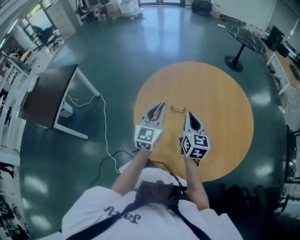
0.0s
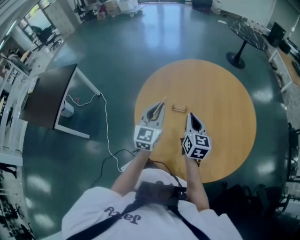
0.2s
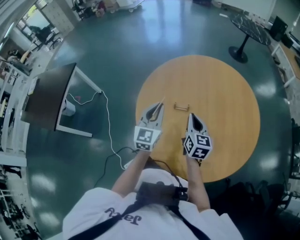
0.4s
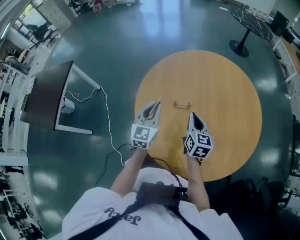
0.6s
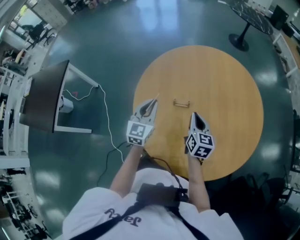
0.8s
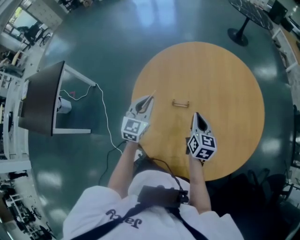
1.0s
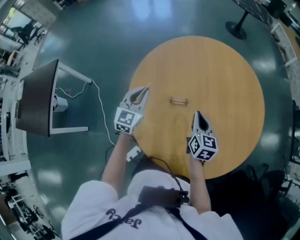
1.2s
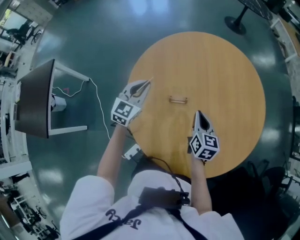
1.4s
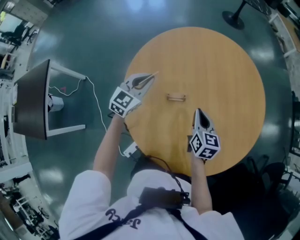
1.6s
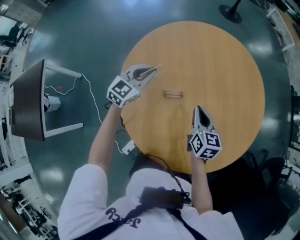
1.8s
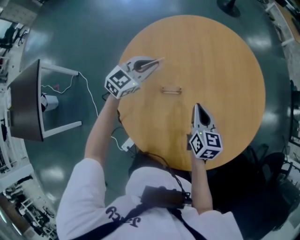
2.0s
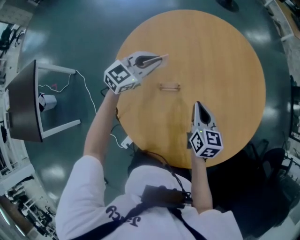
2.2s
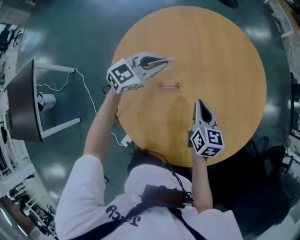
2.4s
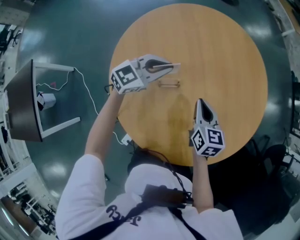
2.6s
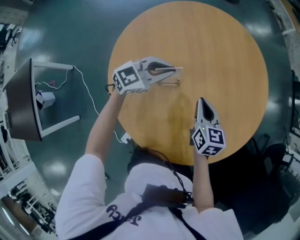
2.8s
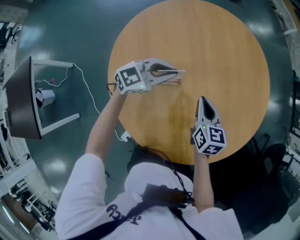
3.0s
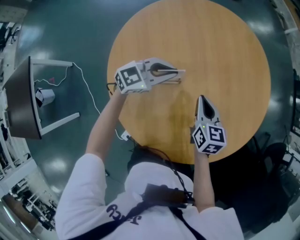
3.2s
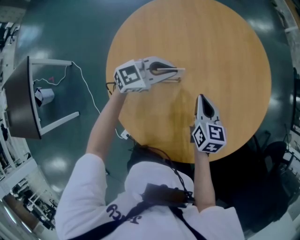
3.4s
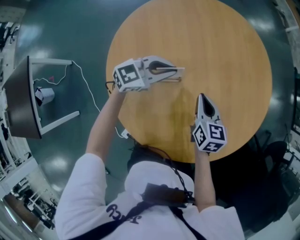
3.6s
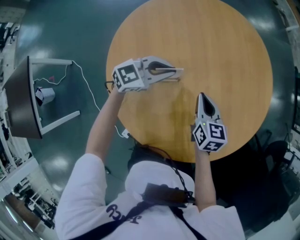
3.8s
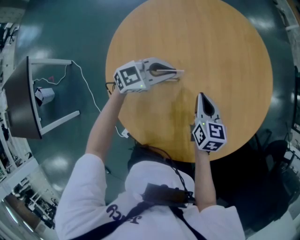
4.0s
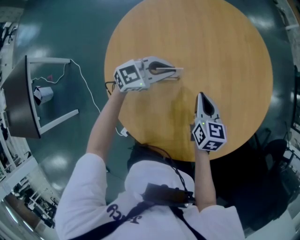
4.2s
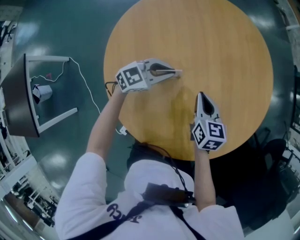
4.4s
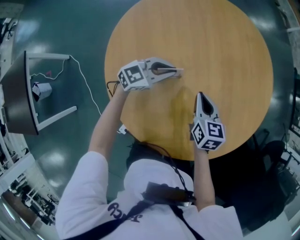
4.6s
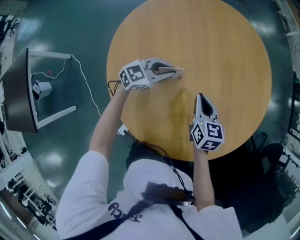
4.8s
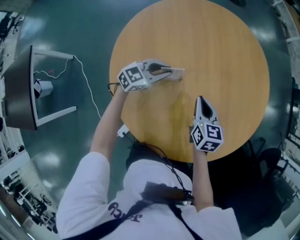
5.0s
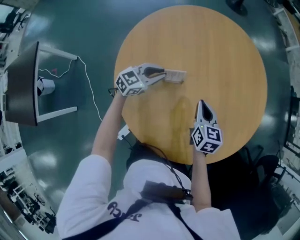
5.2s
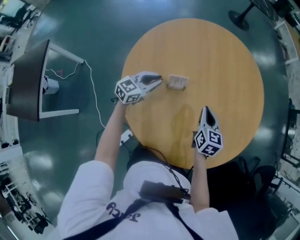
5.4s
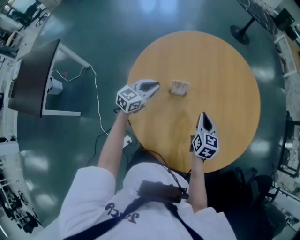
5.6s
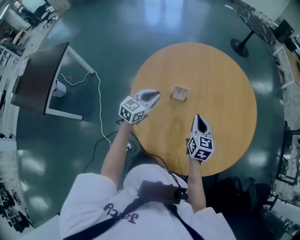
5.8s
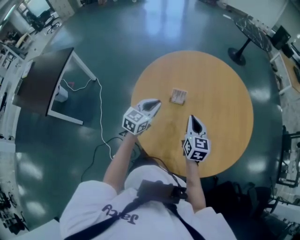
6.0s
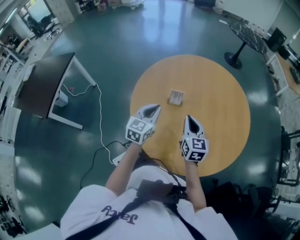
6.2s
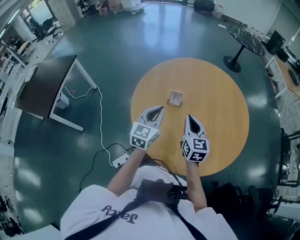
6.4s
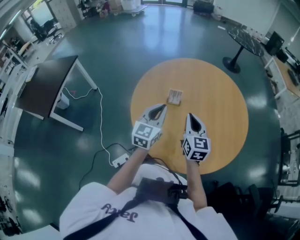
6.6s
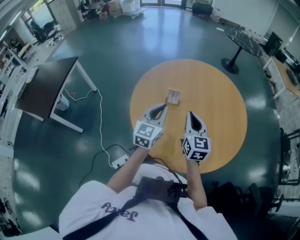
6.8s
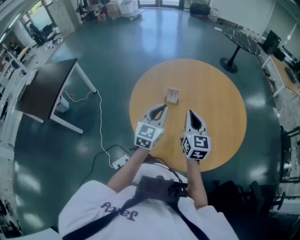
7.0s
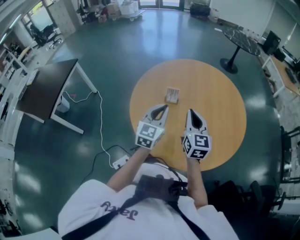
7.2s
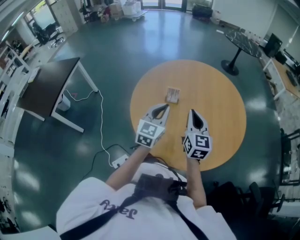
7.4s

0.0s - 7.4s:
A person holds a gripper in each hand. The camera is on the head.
0.0s - 1.4s: The left gripper moves forward and downward, roughly 20 cm, and rotates approximately 30 degrees. The right gripper moves downward and forward, about 15 cm.
1.4s - 3.0s: The left gripper ends up approximately 15 cm from where it was, and changes its angle by about 50 degrees.
3.0s - 4.4s: The left gripper shifts some 5 cm downward.
4.4s - 6.0s: The right gripper heads upward, covering roughly 10 cm, and swivels some 20 degrees; the left gripper moves about 20 cm, and swivels about 50 degrees.
6.0s - 7.4s: The left gripper moves upward, backward and to the right, approximately 15 cm; the right gripper goes approximately 10 cm upward and backward.

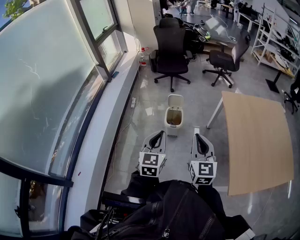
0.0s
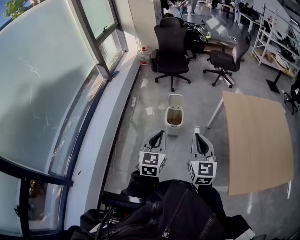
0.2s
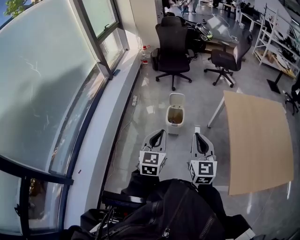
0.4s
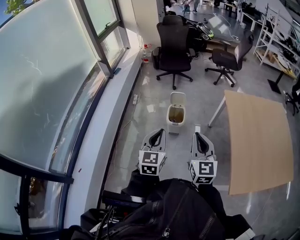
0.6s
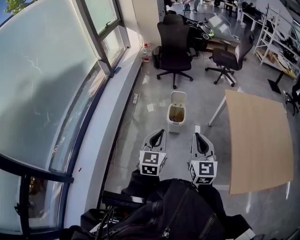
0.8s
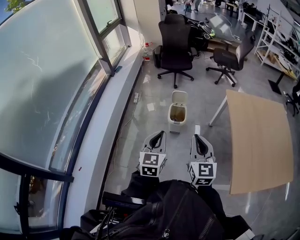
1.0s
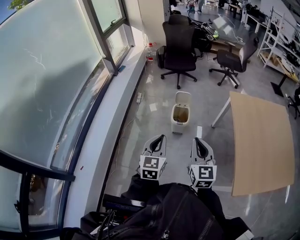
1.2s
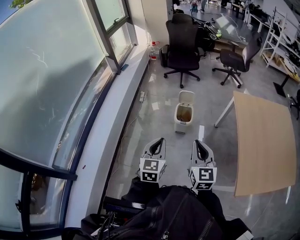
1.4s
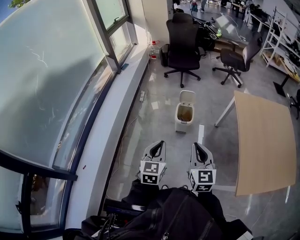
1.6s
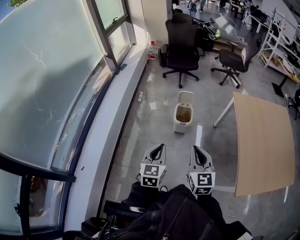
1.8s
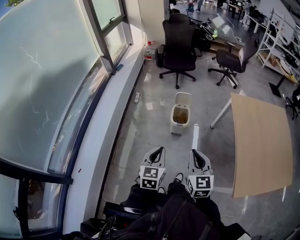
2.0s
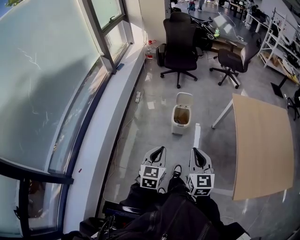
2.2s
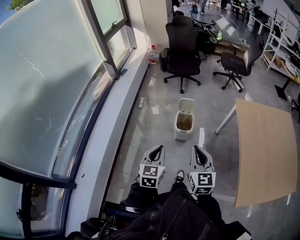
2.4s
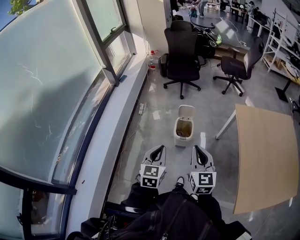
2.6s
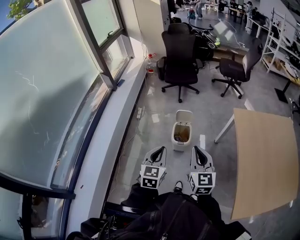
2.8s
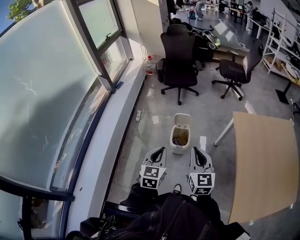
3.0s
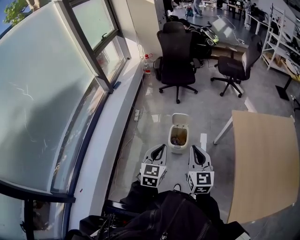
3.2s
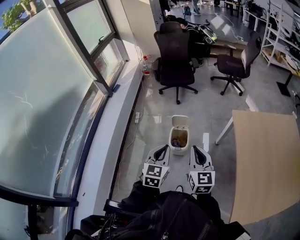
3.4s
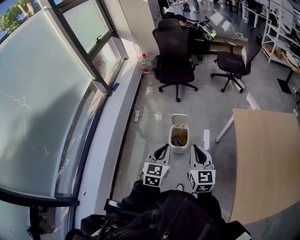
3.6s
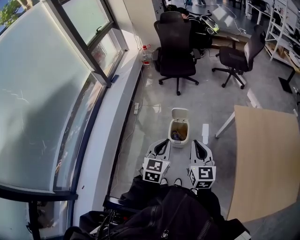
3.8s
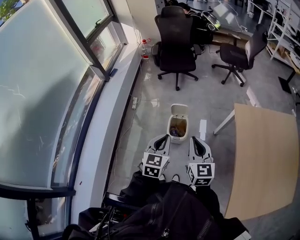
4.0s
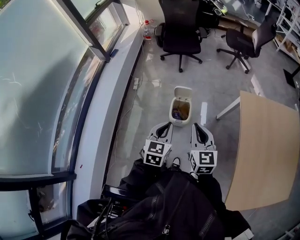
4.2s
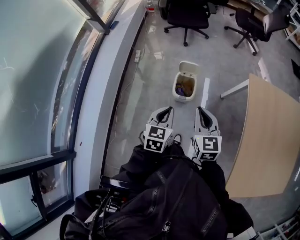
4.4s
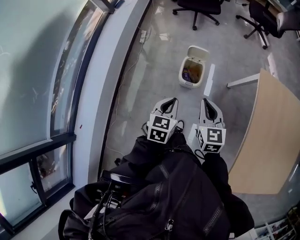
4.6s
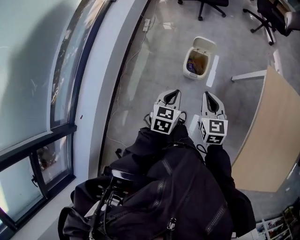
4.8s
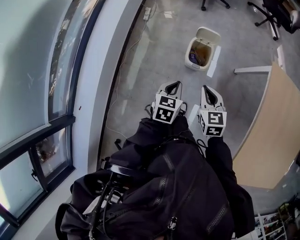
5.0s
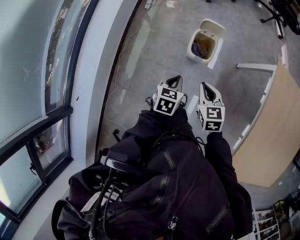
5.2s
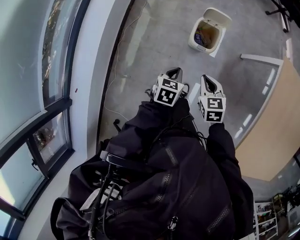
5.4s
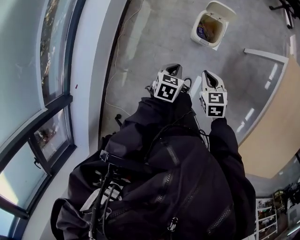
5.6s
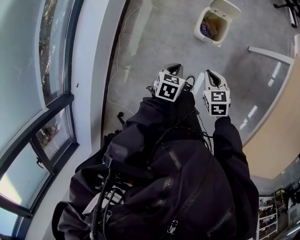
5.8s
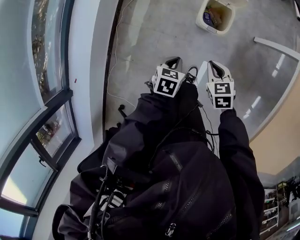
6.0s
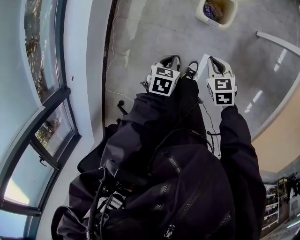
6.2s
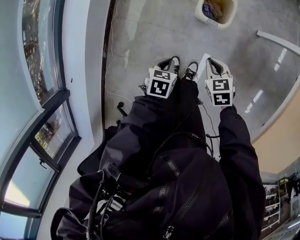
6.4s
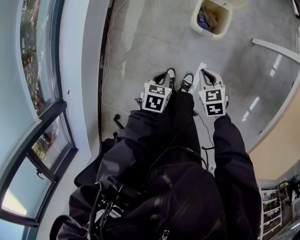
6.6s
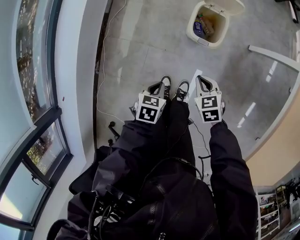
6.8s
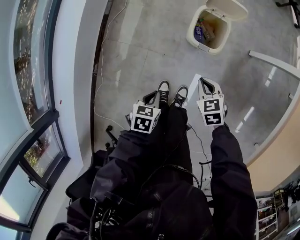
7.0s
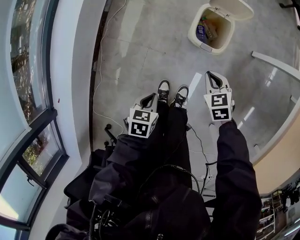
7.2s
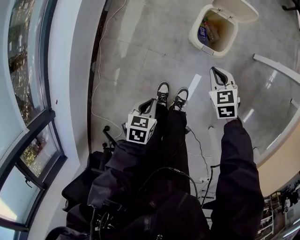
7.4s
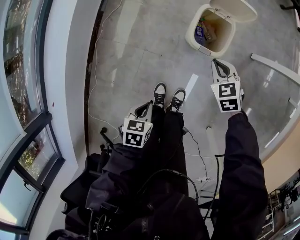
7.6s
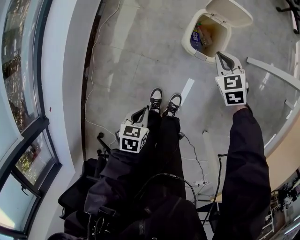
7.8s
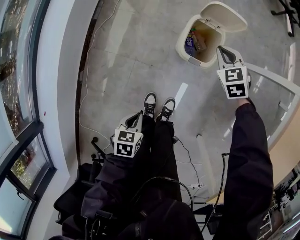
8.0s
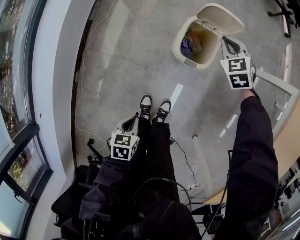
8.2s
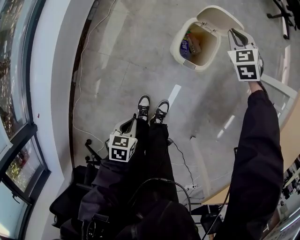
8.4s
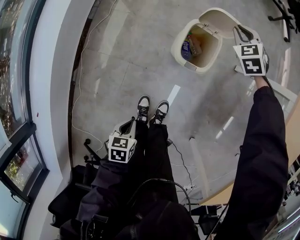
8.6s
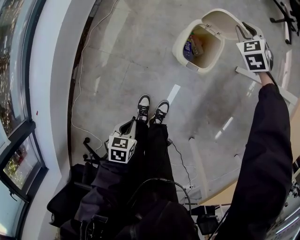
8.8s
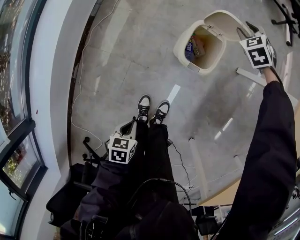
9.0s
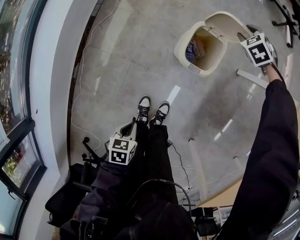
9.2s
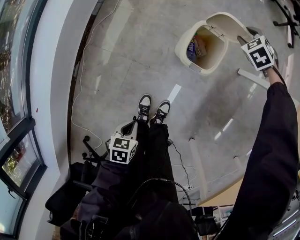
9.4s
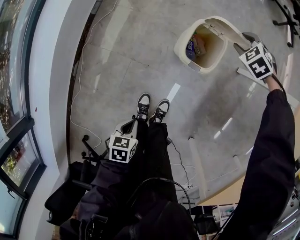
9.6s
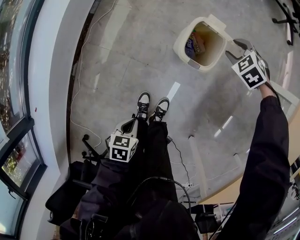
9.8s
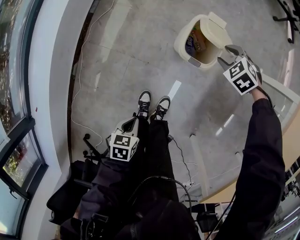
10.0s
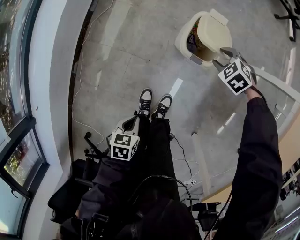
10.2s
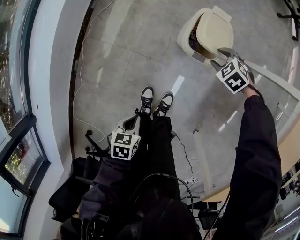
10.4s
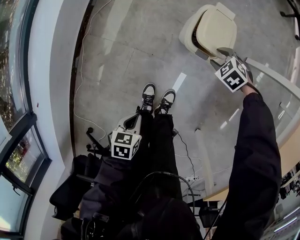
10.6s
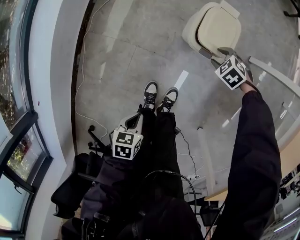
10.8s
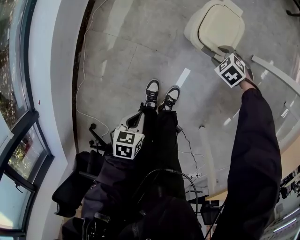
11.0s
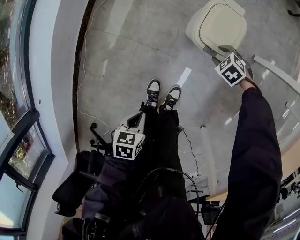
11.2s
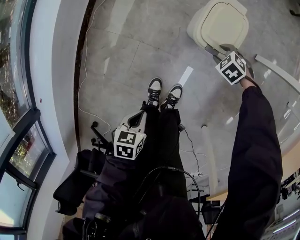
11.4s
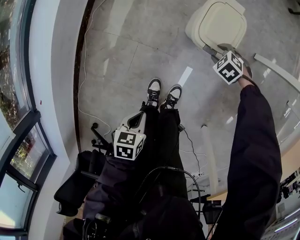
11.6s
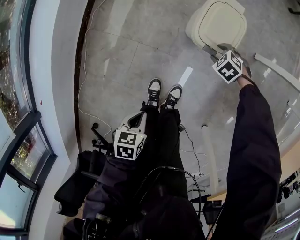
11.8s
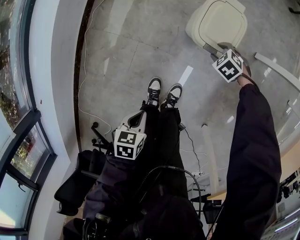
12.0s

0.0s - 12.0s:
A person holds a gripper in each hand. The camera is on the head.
0.0s - 1.6s: The right gripper goes about 10 cm to the left. The left gripper travels to the left and downward by about 10 cm.
1.6s - 3.0s: Both grippers travel together forward, roughly 20 cm.
3.0s - 4.4s: The left gripper goes some 15 cm downward and forward. Meanwhile the right gripper is displaced forward and downward by roughly 15 cm.
4.4s - 6.0s: Both grippers move downward, approximately 35 cm. The right gripper angles its fingers downward, by approximately 30 degrees, while the left gripper swivels roughly 30 degrees.
6.0s - 7.6s: The left gripper is displaced downward and backward by roughly 15 cm. The right gripper is displaced downward and forward by about 20 cm.
7.6s - 9.0s: The right gripper travels forward by roughly 25 cm, swivels about 30 degrees, and opens up.
9.0s - 10.4s: The right gripper changes place by about 25 cm, and swivels roughly 30 degrees.
10.4s - 12.0s: The right gripper moves downward, about 10 cm.

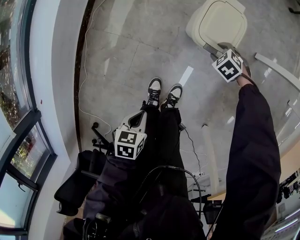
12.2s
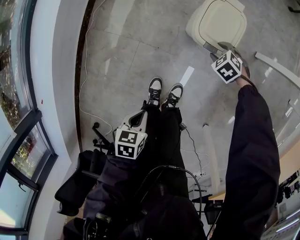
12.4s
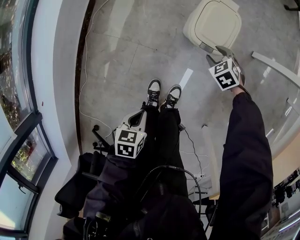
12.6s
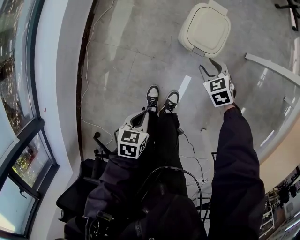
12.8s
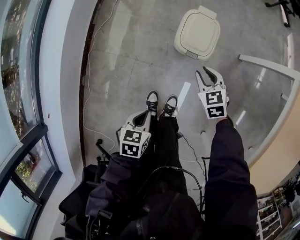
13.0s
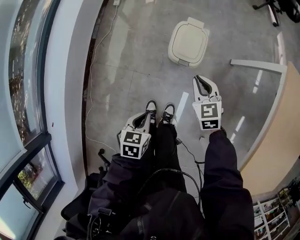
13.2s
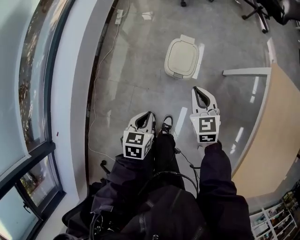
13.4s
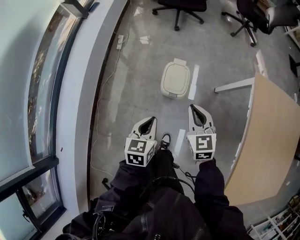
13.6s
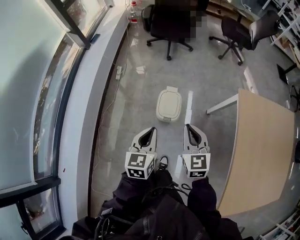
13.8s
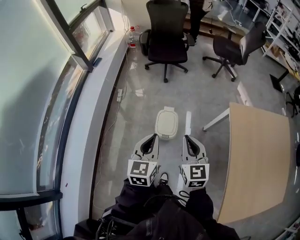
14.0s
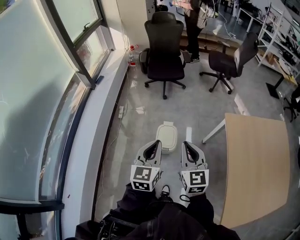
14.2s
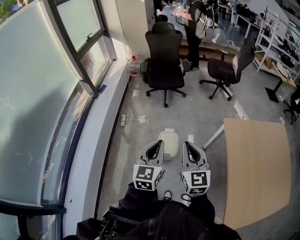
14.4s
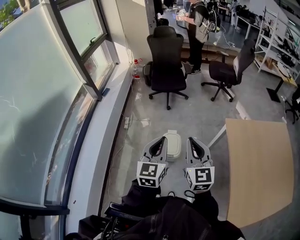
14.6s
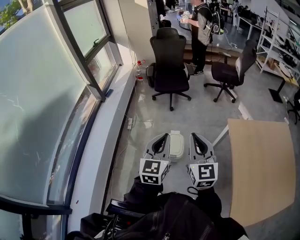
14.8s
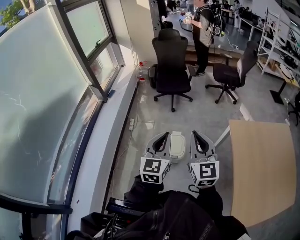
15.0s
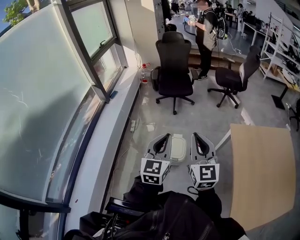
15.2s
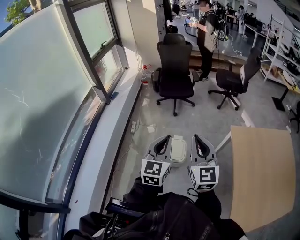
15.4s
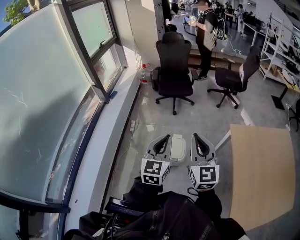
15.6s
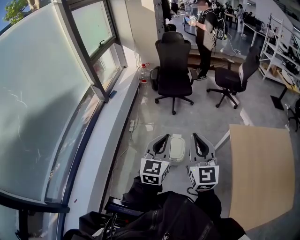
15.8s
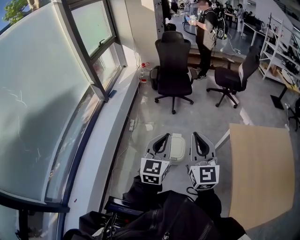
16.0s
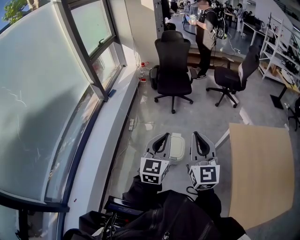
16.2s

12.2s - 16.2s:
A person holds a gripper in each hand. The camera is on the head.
12.2s - 13.6s: The right gripper travels upward by about 50 cm, tilts its fingers about 50 degrees upward, and closes; the left gripper goes roughly 35 cm upward, and swivels approximately 40 degrees.
13.6s - 14.8s: The two grippers go some 35 cm upward. The right gripper angles its fingers upward, by approximately 30 degrees. The left gripper tilts its fingers about 30 degrees upward.
14.8s - 16.2s: The grippers make only small movements.
